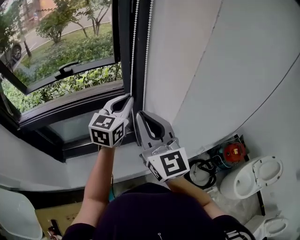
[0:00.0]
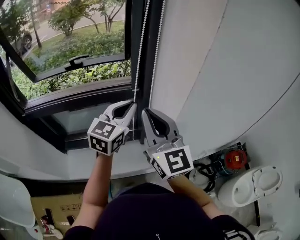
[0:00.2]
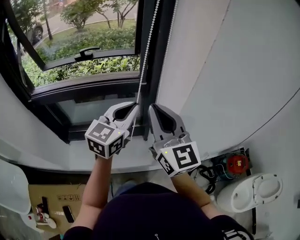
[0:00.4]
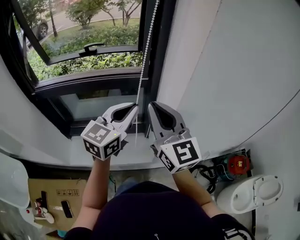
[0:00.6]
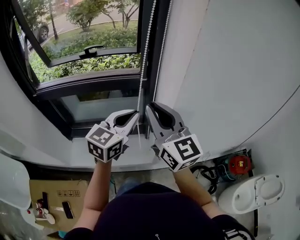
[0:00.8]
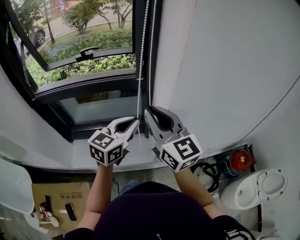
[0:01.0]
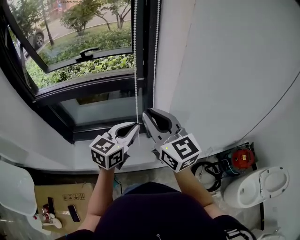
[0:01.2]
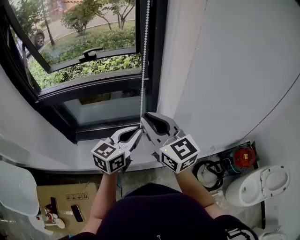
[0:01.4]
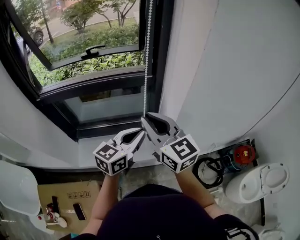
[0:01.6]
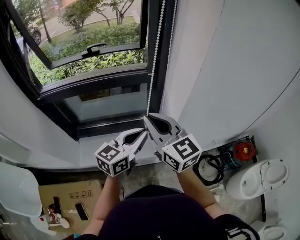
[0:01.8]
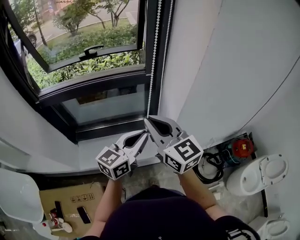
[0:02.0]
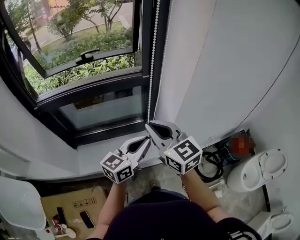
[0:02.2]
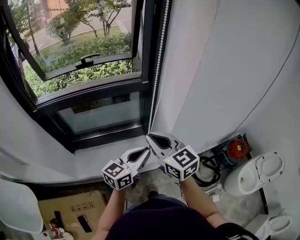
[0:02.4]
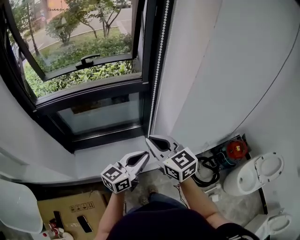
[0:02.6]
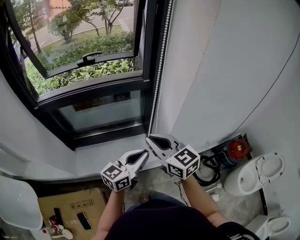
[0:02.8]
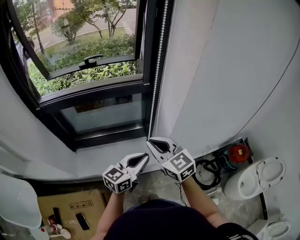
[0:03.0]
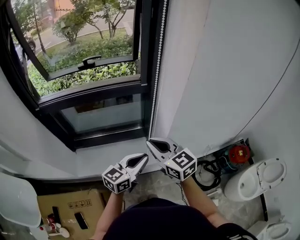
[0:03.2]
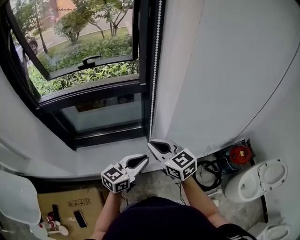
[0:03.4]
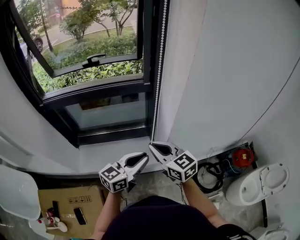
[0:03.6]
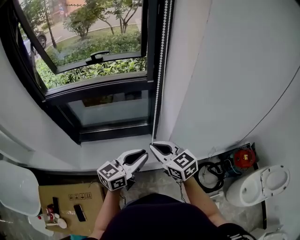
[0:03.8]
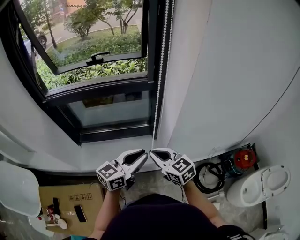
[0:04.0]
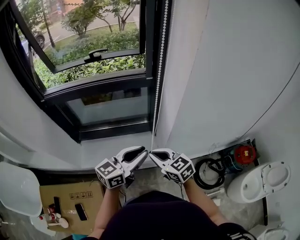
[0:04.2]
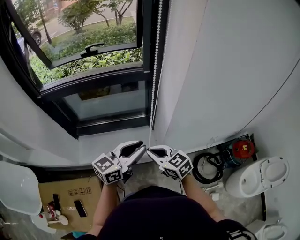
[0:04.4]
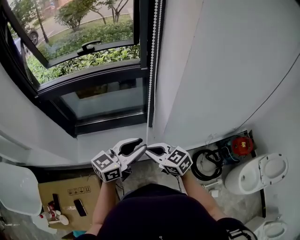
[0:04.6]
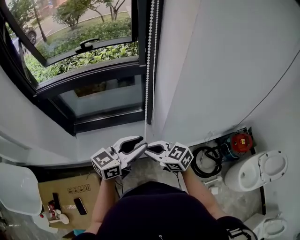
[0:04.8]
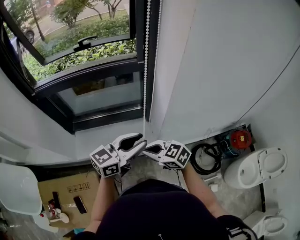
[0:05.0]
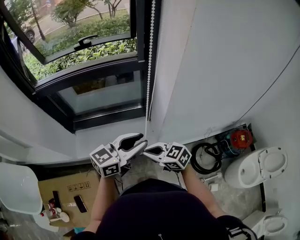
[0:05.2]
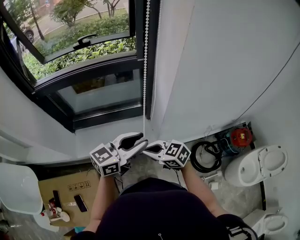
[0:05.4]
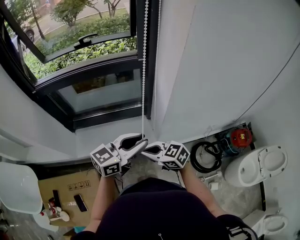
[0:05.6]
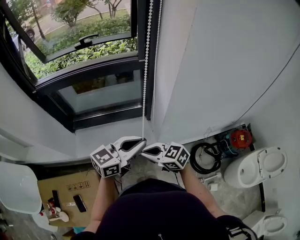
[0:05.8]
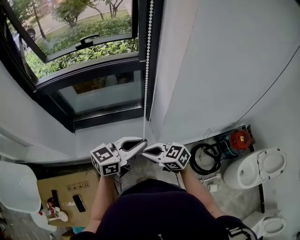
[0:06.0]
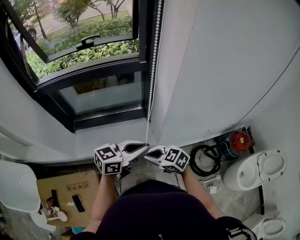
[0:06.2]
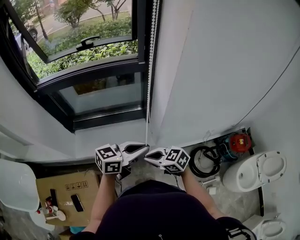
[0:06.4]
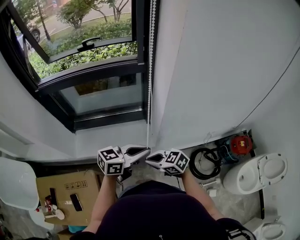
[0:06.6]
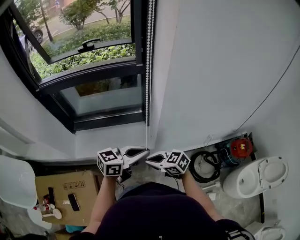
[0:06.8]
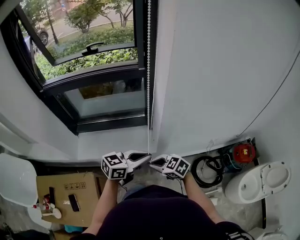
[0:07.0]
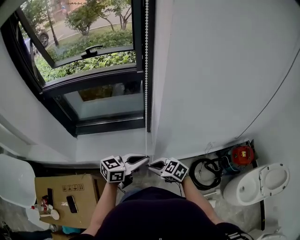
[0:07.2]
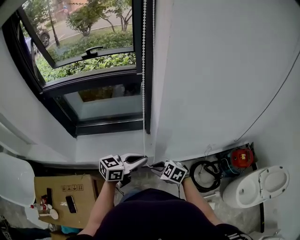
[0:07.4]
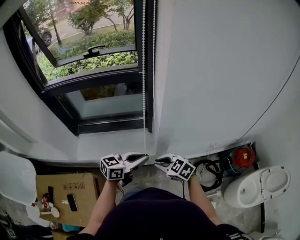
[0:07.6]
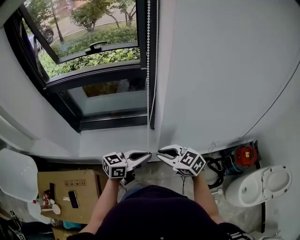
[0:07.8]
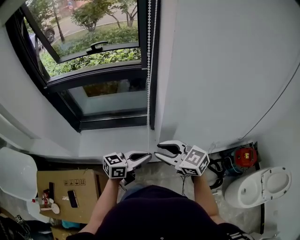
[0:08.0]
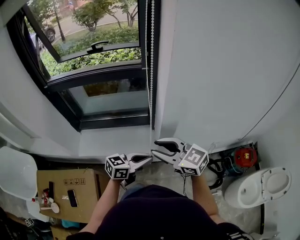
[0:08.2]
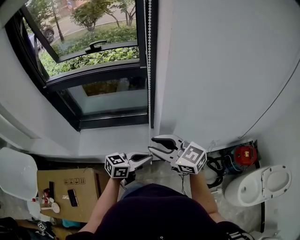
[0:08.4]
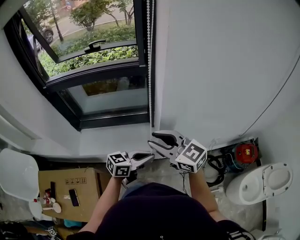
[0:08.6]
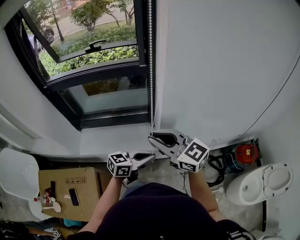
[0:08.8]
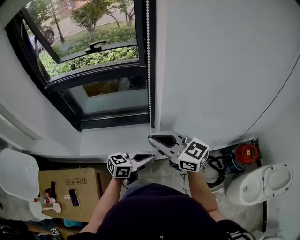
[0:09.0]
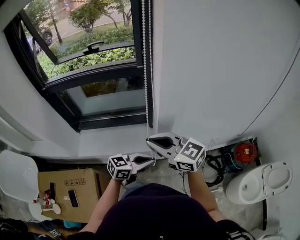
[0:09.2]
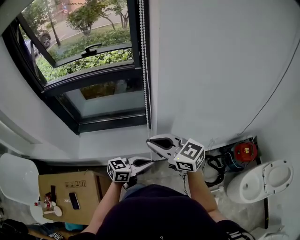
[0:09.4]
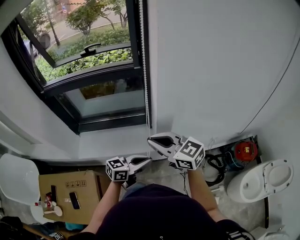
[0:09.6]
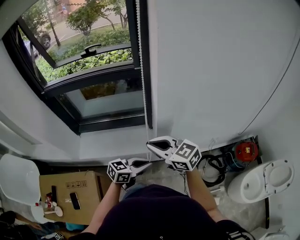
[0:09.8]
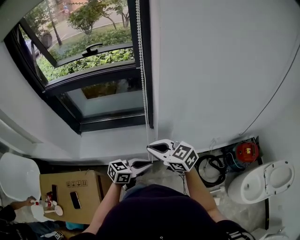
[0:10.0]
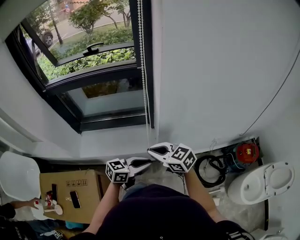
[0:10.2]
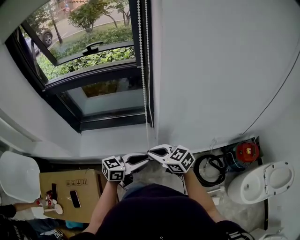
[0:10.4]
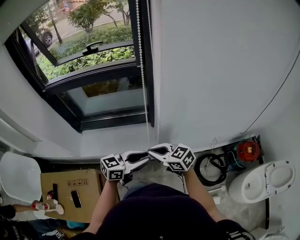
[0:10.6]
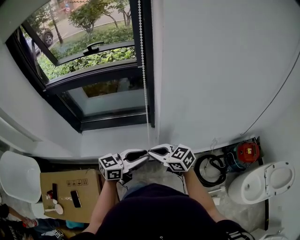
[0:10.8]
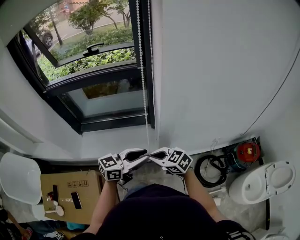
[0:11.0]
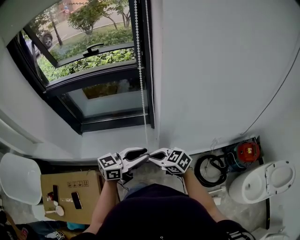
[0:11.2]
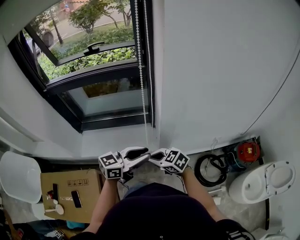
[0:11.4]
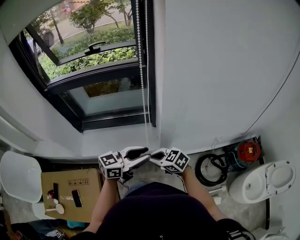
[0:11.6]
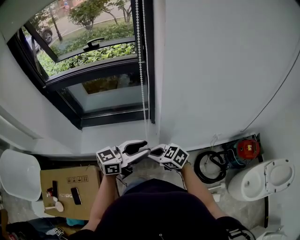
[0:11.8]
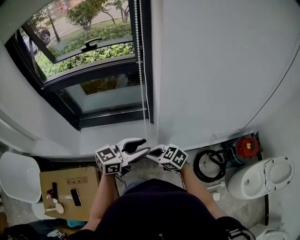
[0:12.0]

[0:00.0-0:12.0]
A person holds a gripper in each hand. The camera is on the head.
0:00.0 to 0:01.6: The right gripper moves backward and downward, some 10 cm, and turns by approximately 20 degrees; the left gripper travels backward by roughly 20 cm.
0:01.6 to 0:03.0: The right gripper moves downward, about 10 cm; the left gripper moves backward and downward, roughly 10 cm.
0:03.0 to 0:04.4: The right gripper goes some 10 cm downward.
0:04.4 to 0:06.0: The right gripper changes place by approximately 5 cm.
0:06.0 to 0:07.6: The right gripper changes place by some 10 cm. Meanwhile the left gripper is displaced downward by approximately 10 cm.
0:07.6 to 0:09.0: The right gripper travels upward by roughly 20 cm, and tips its fingers upward by about 40 degrees.
0:09.0 to 0:10.4: The right gripper moves downward, about 15 cm, and turns by approximately 20 degrees.
0:10.4 to 0:12.0: The right gripper travels downward by about 5 cm; the left gripper goes approximately 5 cm upward.

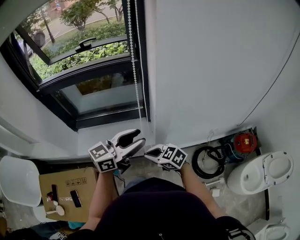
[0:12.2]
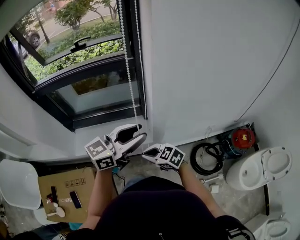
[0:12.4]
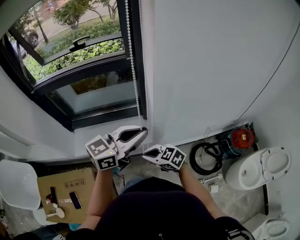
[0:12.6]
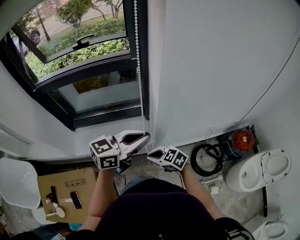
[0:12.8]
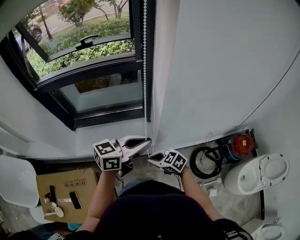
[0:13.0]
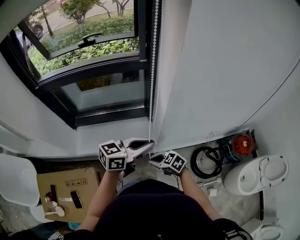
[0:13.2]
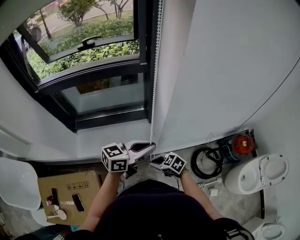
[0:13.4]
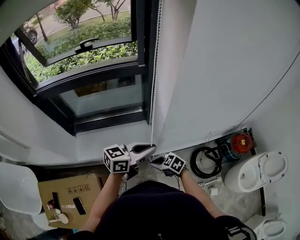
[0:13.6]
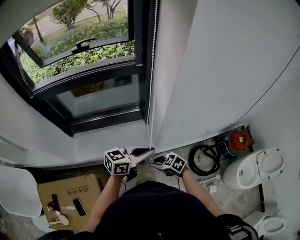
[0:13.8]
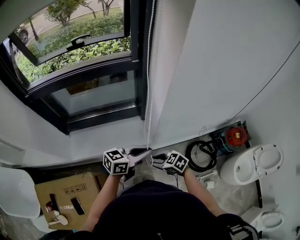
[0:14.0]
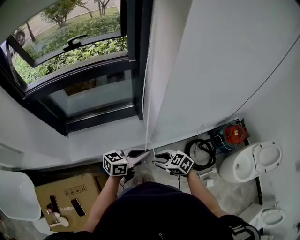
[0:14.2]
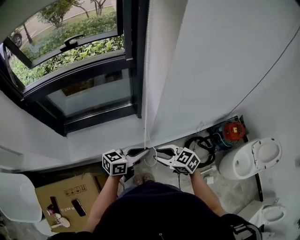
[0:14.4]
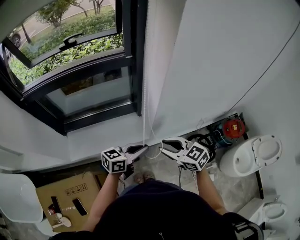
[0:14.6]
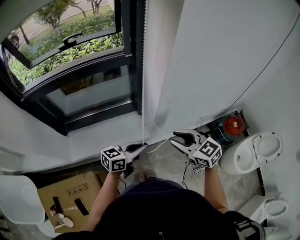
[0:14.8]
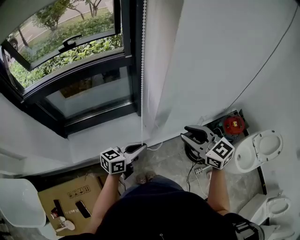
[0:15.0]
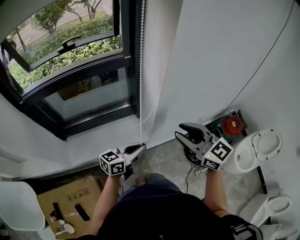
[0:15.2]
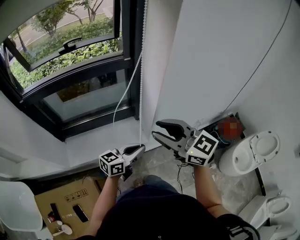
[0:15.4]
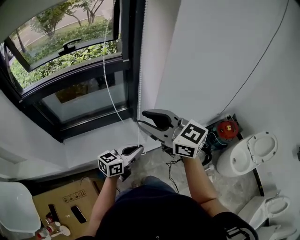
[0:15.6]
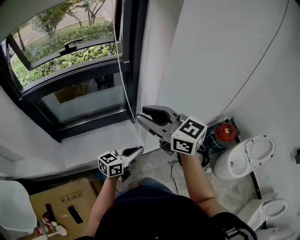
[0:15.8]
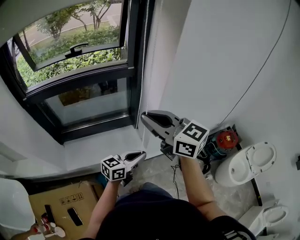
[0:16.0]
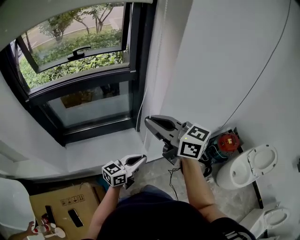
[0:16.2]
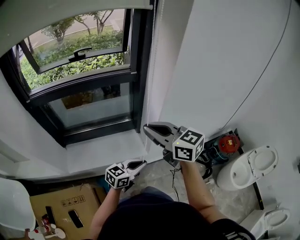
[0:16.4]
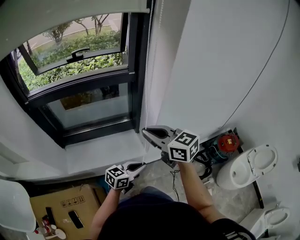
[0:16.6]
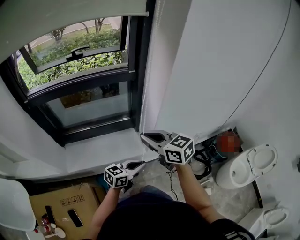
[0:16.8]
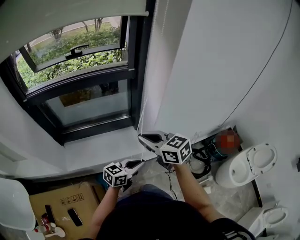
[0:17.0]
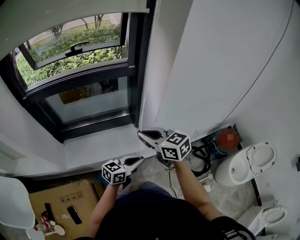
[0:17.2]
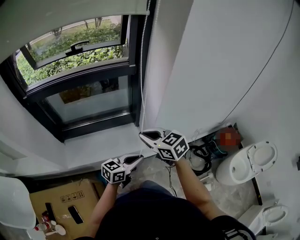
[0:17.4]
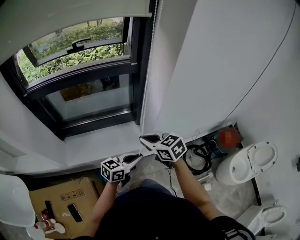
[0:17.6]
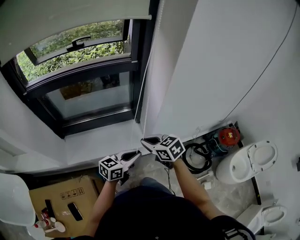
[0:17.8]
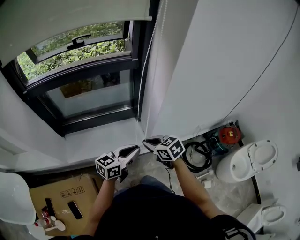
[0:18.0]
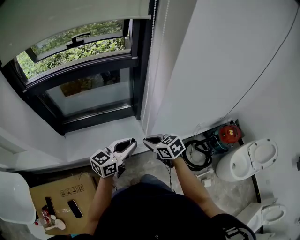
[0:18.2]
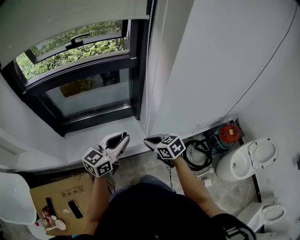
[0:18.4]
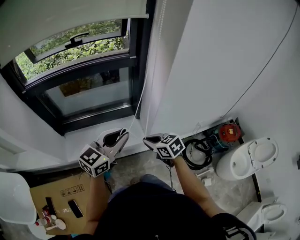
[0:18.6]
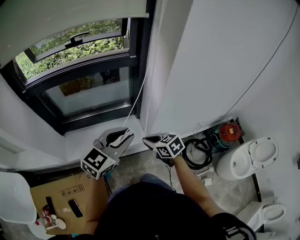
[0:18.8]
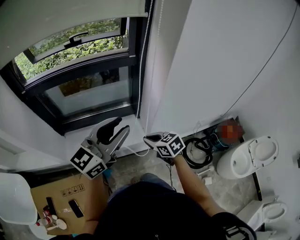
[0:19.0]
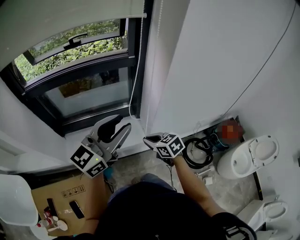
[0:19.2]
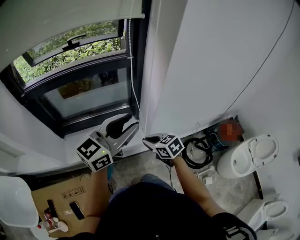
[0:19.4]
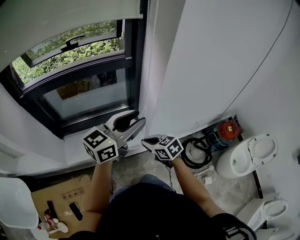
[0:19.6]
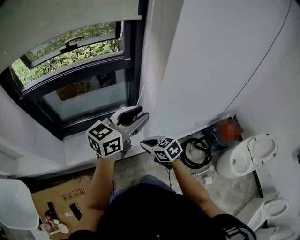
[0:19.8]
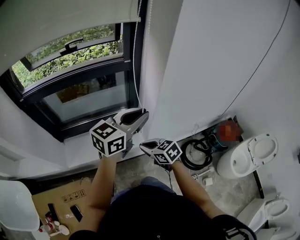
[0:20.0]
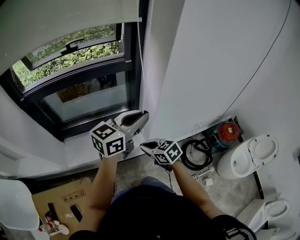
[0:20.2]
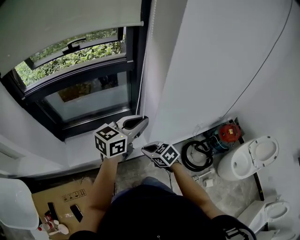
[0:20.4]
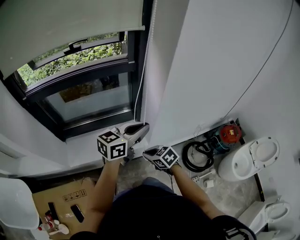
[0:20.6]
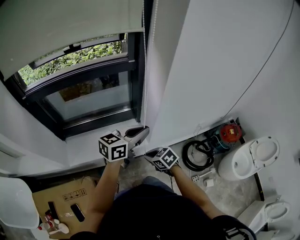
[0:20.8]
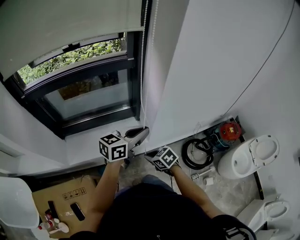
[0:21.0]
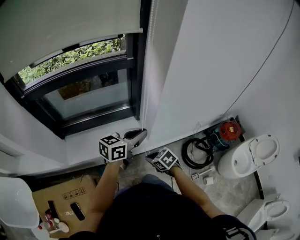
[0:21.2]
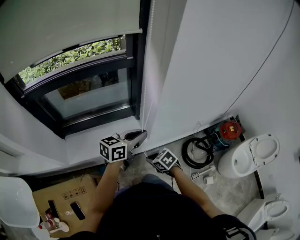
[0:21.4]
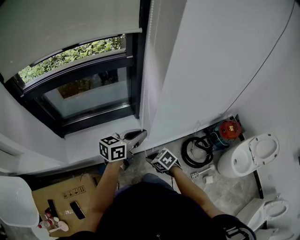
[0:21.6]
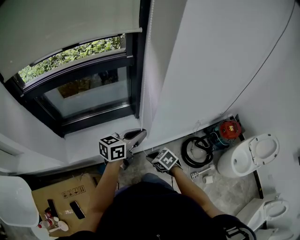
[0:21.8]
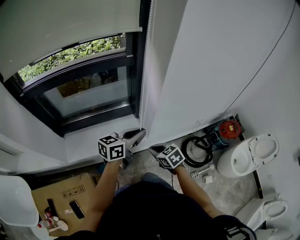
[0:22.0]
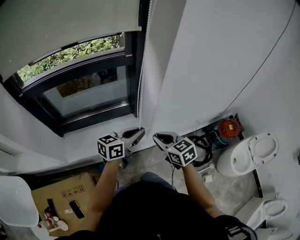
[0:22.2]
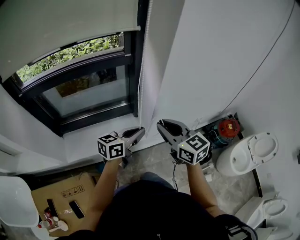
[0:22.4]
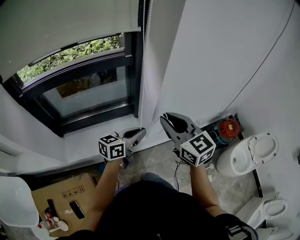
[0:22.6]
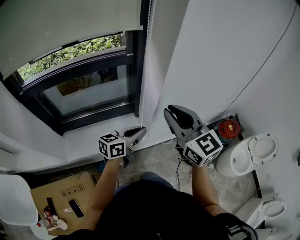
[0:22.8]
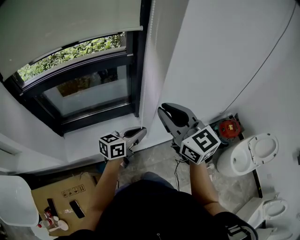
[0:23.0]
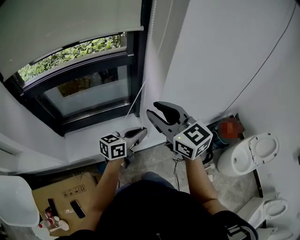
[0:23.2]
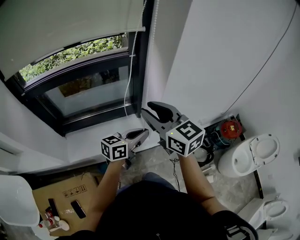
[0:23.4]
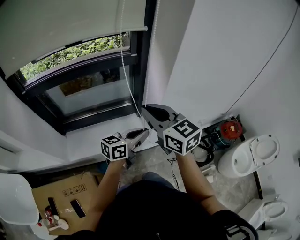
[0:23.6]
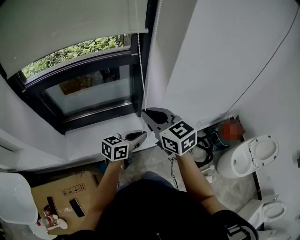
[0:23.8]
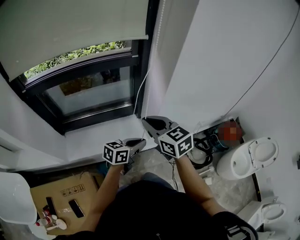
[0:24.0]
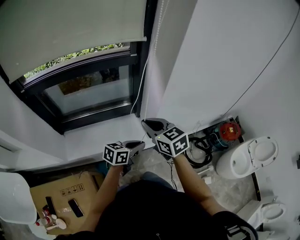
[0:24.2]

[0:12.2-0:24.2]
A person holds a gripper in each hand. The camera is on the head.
0:12.2 to 0:13.8: The two grippers go roughly 10 cm downward. The left gripper rotates about 20 degrees, and closes up.
0:13.8 to 0:15.2: The left gripper shifts by about 5 cm, while the right gripper goes approximately 30 cm upward, and angles its fingers upward, by approximately 40 degrees.
0:15.2 to 0:16.6: The left gripper moves some 5 cm, while the right gripper heads to the left, covering some 10 cm.
0:16.6 to 0:18.2: The right gripper shifts approximately 20 cm downward, and turns by about 30 degrees. Meanwhile the left gripper travels upward and to the left by approximately 10 cm.
0:18.2 to 0:19.8: The left gripper shifts roughly 15 cm upward, and opens.
0:19.8 to 0:21.2: The left gripper goes about 15 cm downward, and closes up, while the right gripper goes roughly 10 cm downward and backward.
0:21.2 to 0:22.6: The right gripper travels upward by some 30 cm, and points its fingers roughly 40 degrees further upward.
0:22.6 to 0:24.2: The left gripper travels downward by some 10 cm; the right gripper travels downward and to the left by roughly 10 cm.
